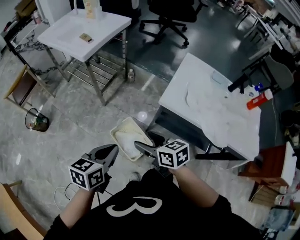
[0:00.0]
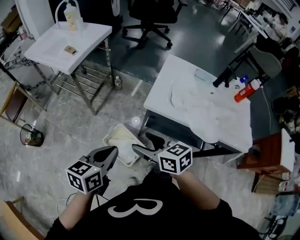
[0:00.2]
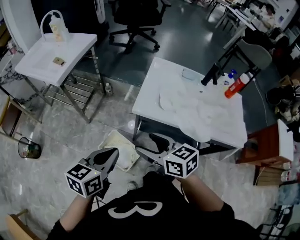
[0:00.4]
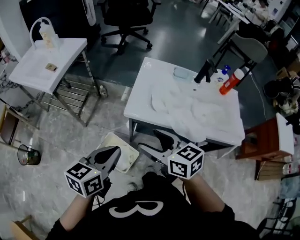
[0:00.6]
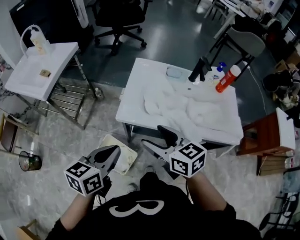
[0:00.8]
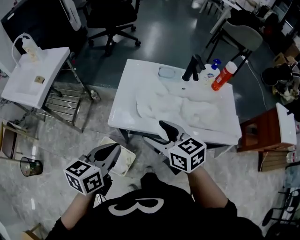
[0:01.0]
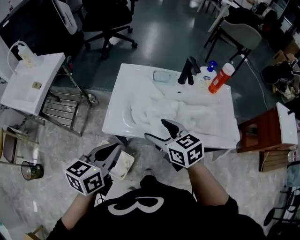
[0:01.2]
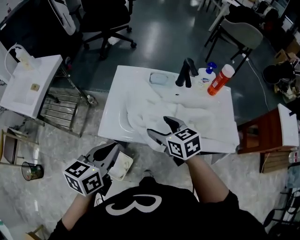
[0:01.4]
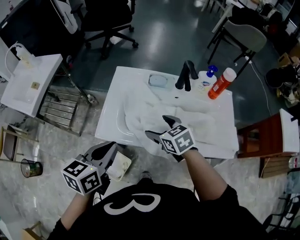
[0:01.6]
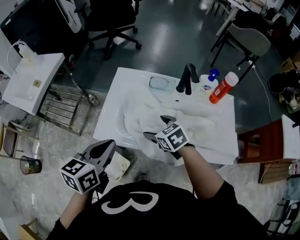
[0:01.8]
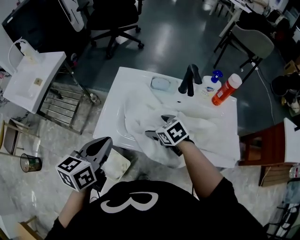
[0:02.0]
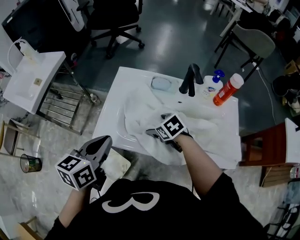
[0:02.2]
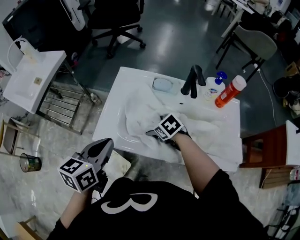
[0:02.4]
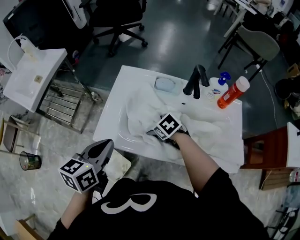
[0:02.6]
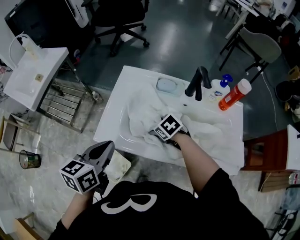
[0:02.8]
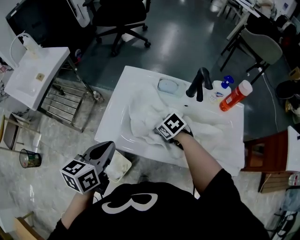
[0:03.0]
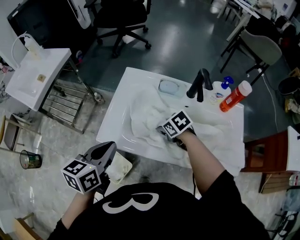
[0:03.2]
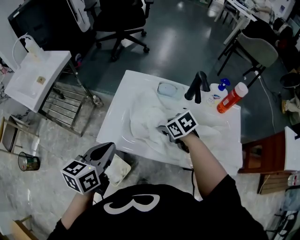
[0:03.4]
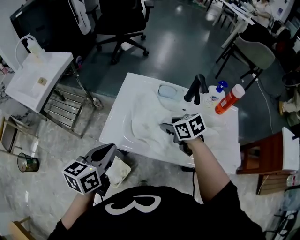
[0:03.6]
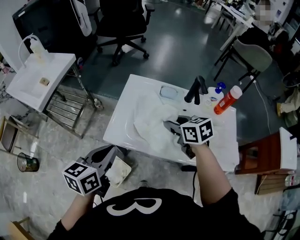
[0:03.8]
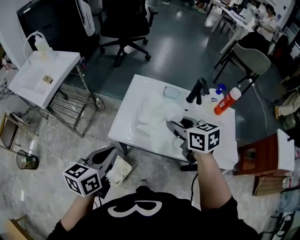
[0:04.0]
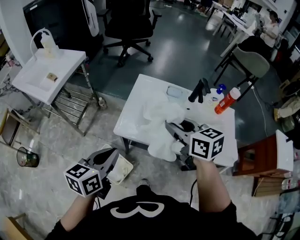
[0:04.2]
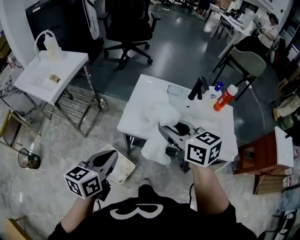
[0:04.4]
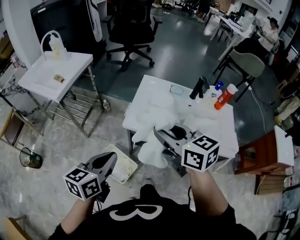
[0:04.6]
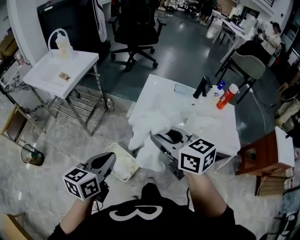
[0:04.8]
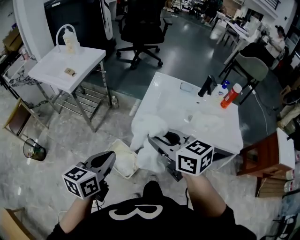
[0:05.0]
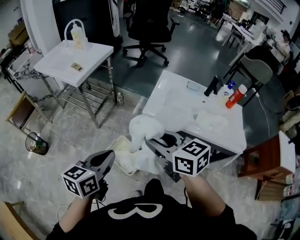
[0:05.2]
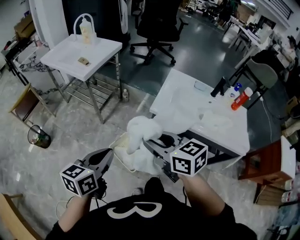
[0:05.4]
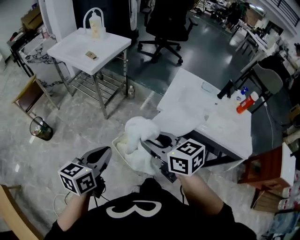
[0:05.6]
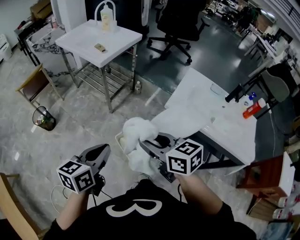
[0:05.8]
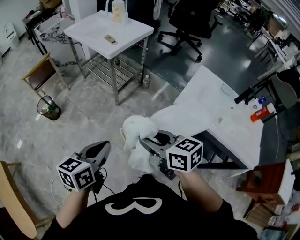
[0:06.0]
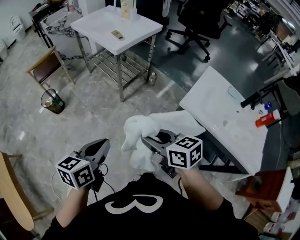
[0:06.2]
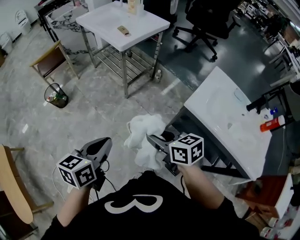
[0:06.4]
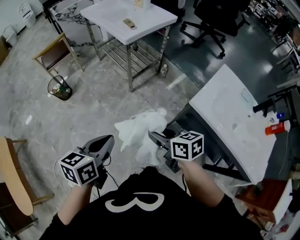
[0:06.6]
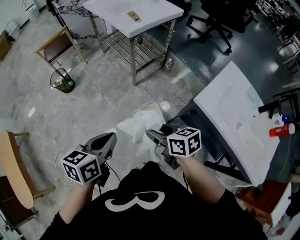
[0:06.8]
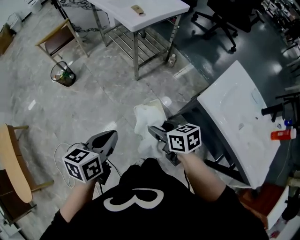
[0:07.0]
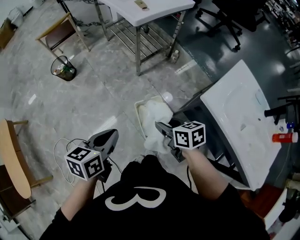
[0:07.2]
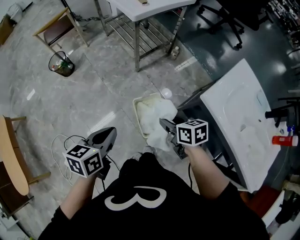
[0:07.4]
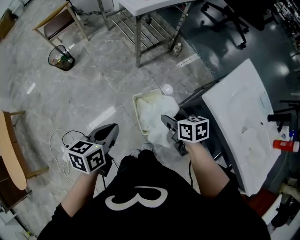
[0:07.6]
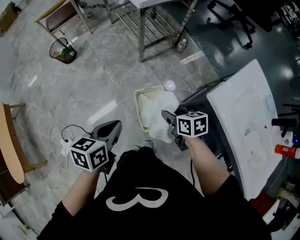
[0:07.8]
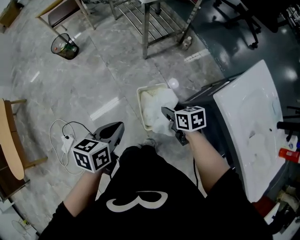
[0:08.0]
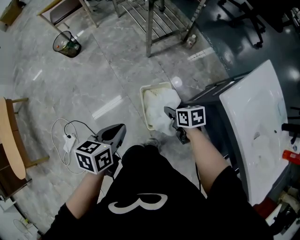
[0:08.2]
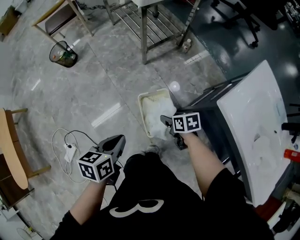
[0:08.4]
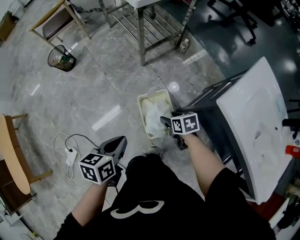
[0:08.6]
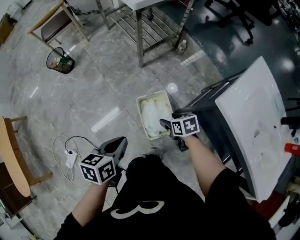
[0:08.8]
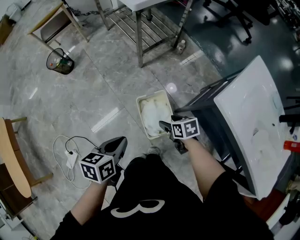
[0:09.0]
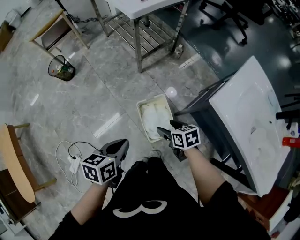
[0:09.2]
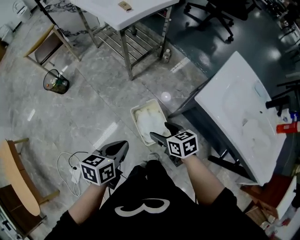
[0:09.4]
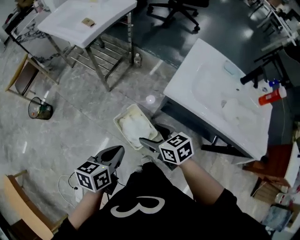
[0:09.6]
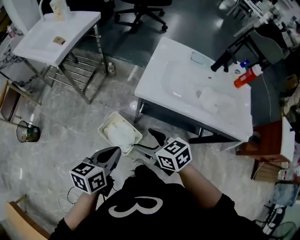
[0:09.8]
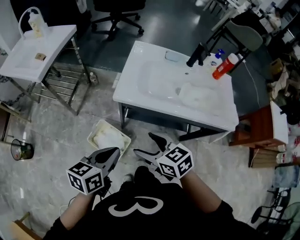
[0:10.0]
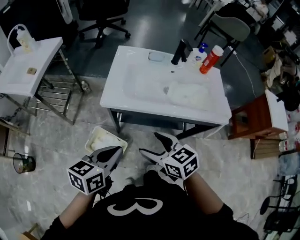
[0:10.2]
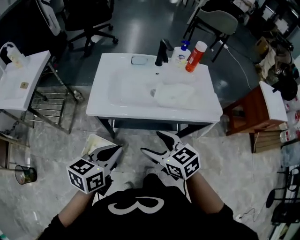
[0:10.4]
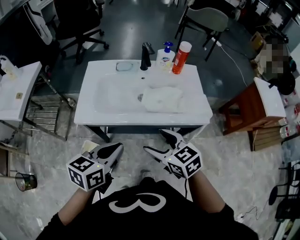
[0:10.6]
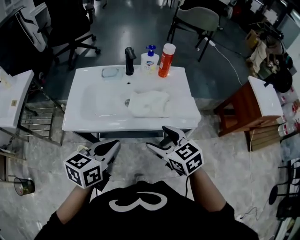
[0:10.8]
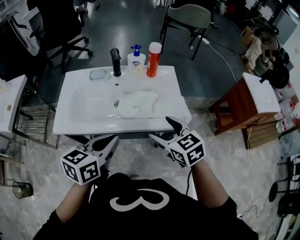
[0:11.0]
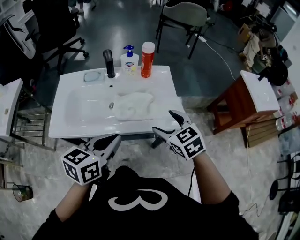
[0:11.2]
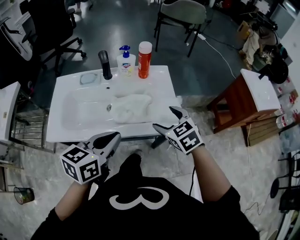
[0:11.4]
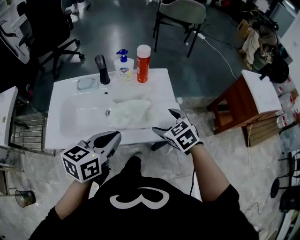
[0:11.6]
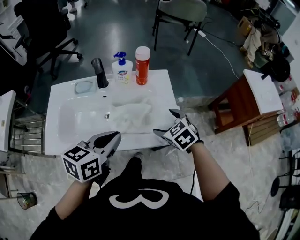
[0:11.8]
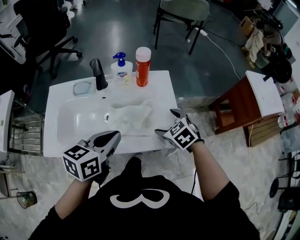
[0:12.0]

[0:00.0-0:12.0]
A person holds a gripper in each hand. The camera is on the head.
0:00.0 to 0:01.6: The grippers both shift to the right and forward by about 35 cm. The right gripper rotates roughly 30 degrees.
0:01.6 to 0:03.0: The left gripper moves approximately 5 cm. The right gripper moves downward and forward, approximately 15 cm, swivels approximately 30 degrees, and closes.
0:03.0 to 0:04.4: The left gripper shifts roughly 20 cm backward, to the left and upward, while the right gripper heads upward and backward, covering some 35 cm, and tilts its fingers about 40 degrees upward.
0:04.4 to 0:06.0: The right gripper changes place by roughly 35 cm, and swivels approximately 30 degrees. Meanwhile the left gripper shifts by some 30 cm, and rotates roughly 20 degrees.
0:06.0 to 0:07.6: The right gripper is displaced downward by roughly 25 cm, and swivels some 30 degrees. The left gripper heads downward, covering about 15 cm, and swivels about 20 degrees.
0:07.6 to 0:09.0: The right gripper heads downward, covering some 15 cm, while the left gripper is displaced downward by about 10 cm.
0:09.0 to 0:10.4: The left gripper ends up some 40 cm from where it was, and changes its angle by approximately 60 degrees. The right gripper travels upward by some 35 cm, and swivels approximately 50 degrees.
0:10.4 to 0:12.0: The right gripper travels to the right and forward by some 40 cm, and swivels some 30 degrees. The left gripper heads forward and to the right, covering roughly 35 cm.

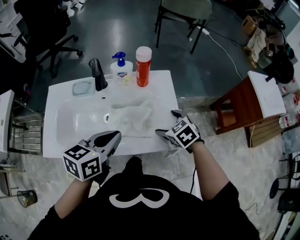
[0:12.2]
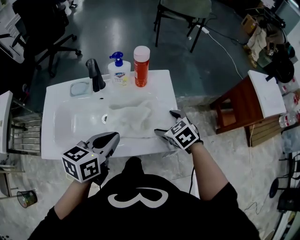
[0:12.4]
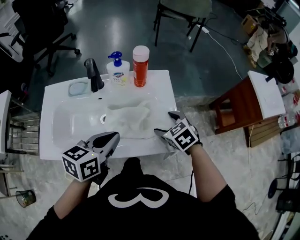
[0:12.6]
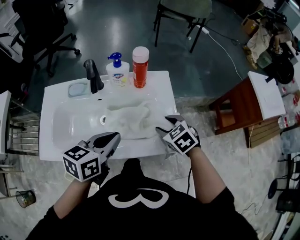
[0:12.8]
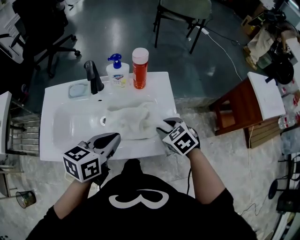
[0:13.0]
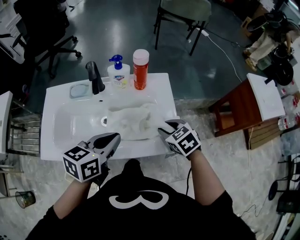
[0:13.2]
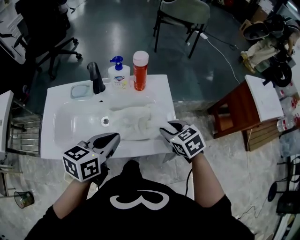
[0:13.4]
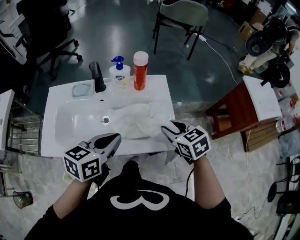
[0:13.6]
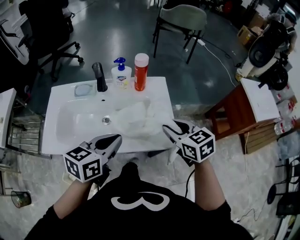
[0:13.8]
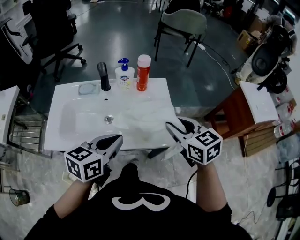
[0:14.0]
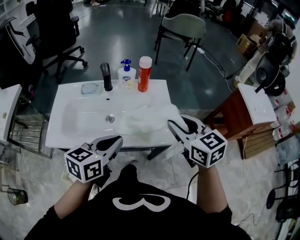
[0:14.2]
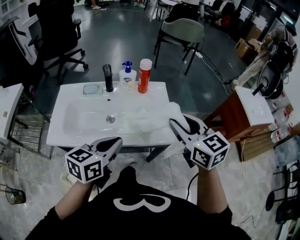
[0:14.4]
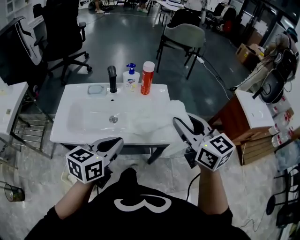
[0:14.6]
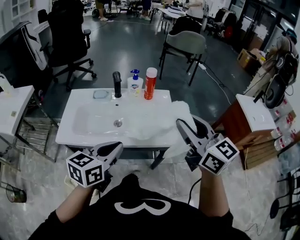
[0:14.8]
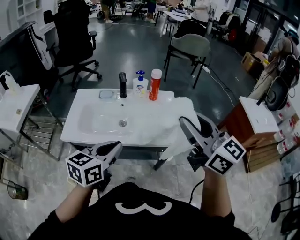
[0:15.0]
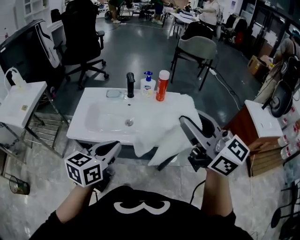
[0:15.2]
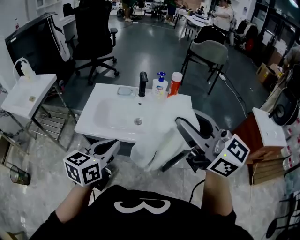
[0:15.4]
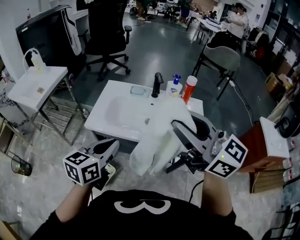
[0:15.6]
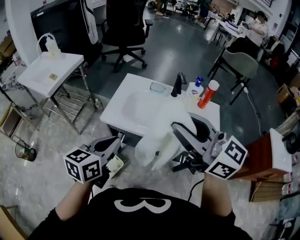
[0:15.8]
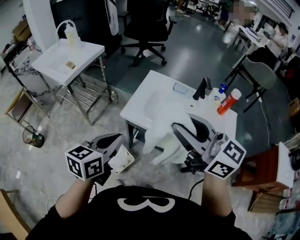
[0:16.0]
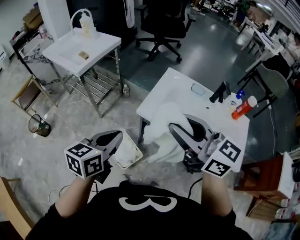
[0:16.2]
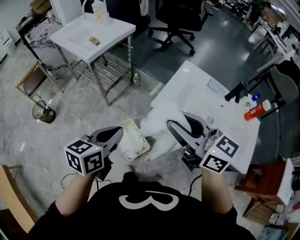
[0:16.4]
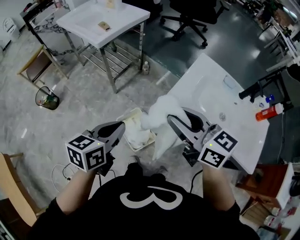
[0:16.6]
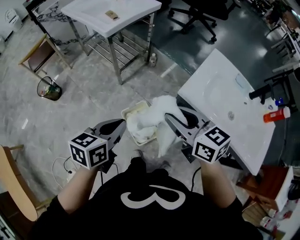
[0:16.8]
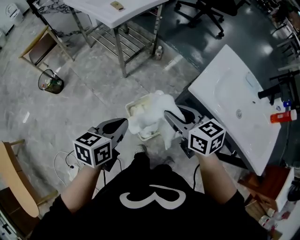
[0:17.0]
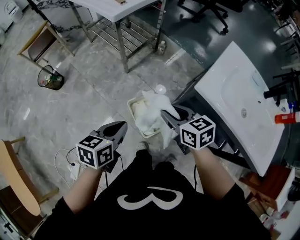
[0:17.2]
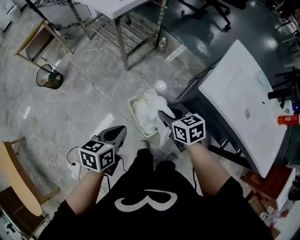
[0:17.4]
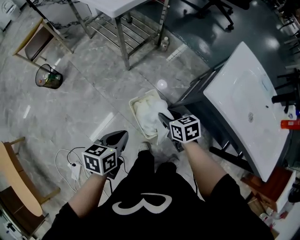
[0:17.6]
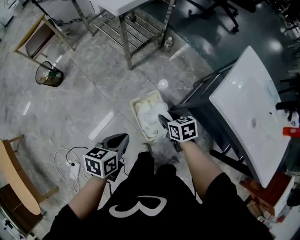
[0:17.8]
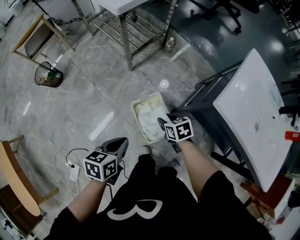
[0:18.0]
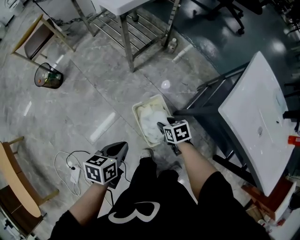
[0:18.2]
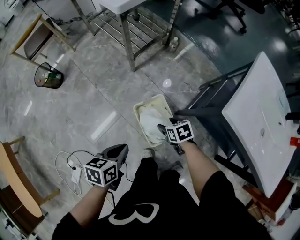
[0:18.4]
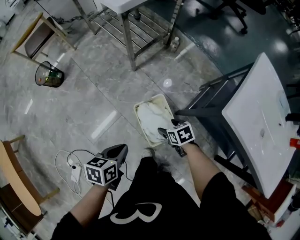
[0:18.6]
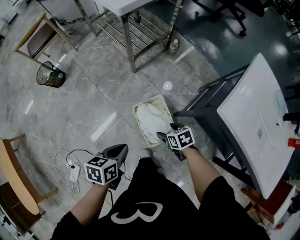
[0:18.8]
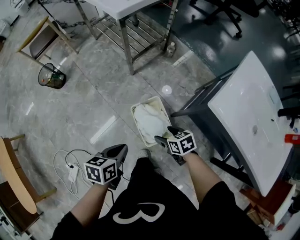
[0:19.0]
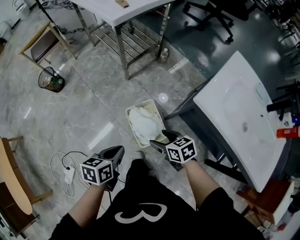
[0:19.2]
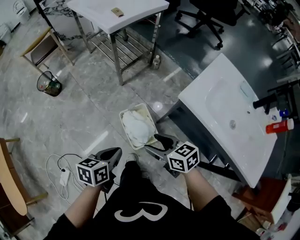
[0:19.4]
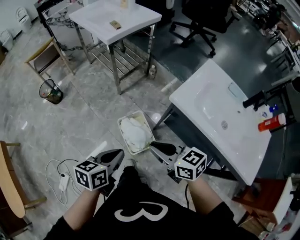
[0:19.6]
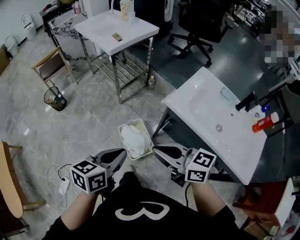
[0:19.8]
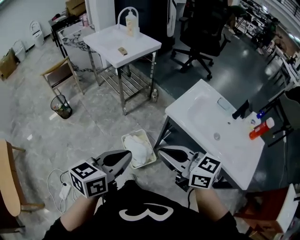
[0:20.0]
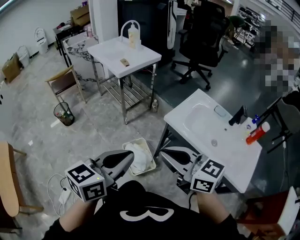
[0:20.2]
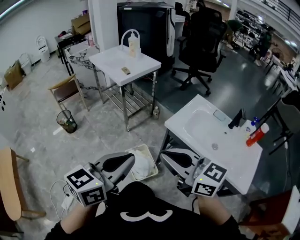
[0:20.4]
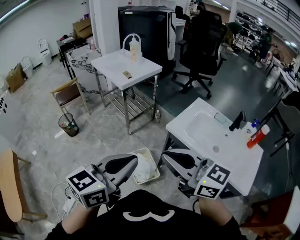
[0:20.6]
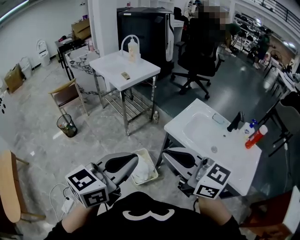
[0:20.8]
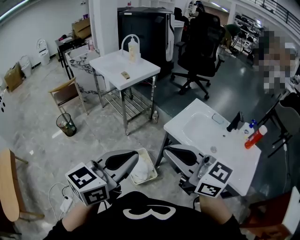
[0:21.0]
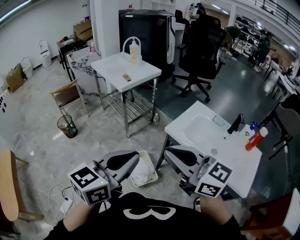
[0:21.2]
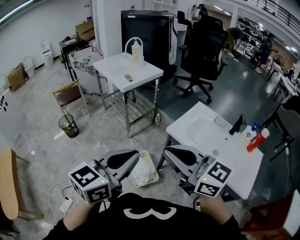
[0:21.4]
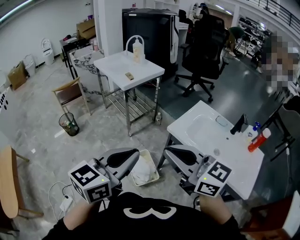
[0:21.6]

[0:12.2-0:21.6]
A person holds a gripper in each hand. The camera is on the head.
0:12.2 to 0:13.8: The right gripper shifts about 10 cm upward, swivels about 20 degrees, and closes its fingers.
0:13.8 to 0:15.4: The left gripper moves backward, to the left and upward, some 20 cm. Meanwhile the right gripper is displaced upward, backward and to the left by about 35 cm, and tilts its fingers approximately 40 degrees upward.
0:15.4 to 0:17.0: The pair of grippers is taken about 50 cm. The right gripper tips its fingers downward by roughly 40 degrees. The left gripper turns by about 40 degrees.
0:17.0 to 0:18.4: The left gripper travels downward by some 20 cm, while the right gripper moves downward, approximately 35 cm, and points its fingers approximately 30 degrees further downward.
0:18.4 to 0:20.0: The grippers both shift upward and backward by roughly 50 cm. The left gripper changes its angle by about 30 degrees. Meanwhile the right gripper tilts its fingers roughly 50 degrees upward, and closes up.
0:20.0 to 0:21.6: The two grippers go roughly 10 cm upward. The left gripper turns by approximately 20 degrees.

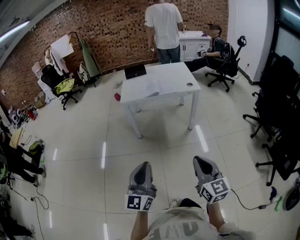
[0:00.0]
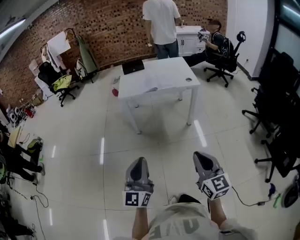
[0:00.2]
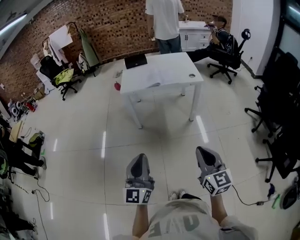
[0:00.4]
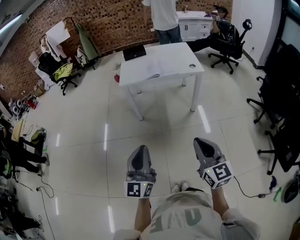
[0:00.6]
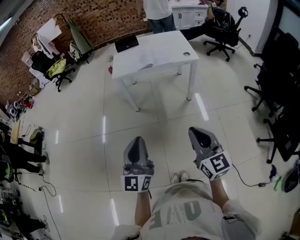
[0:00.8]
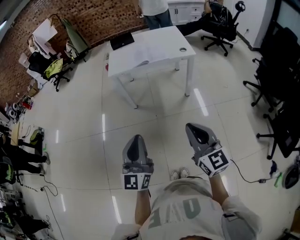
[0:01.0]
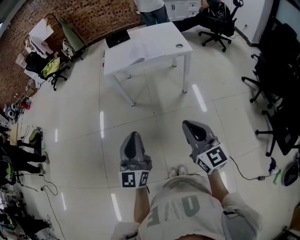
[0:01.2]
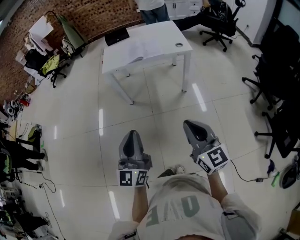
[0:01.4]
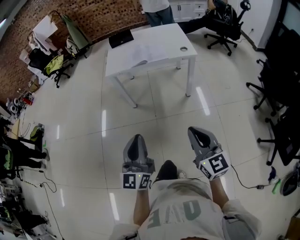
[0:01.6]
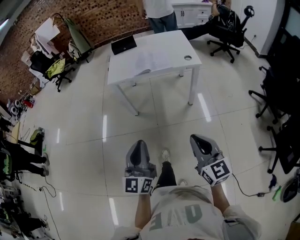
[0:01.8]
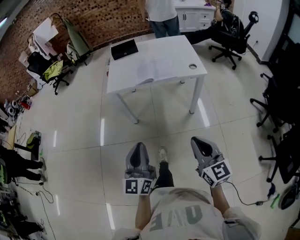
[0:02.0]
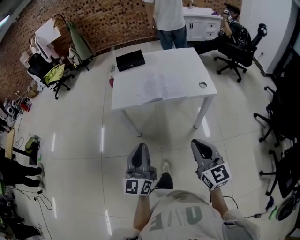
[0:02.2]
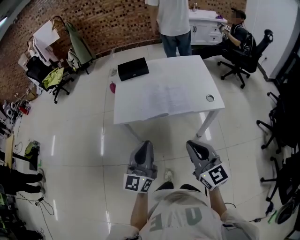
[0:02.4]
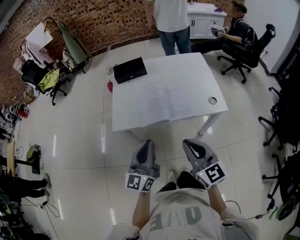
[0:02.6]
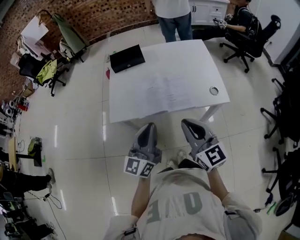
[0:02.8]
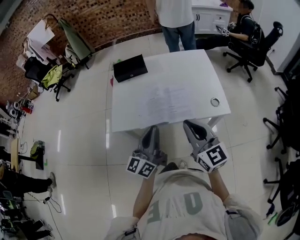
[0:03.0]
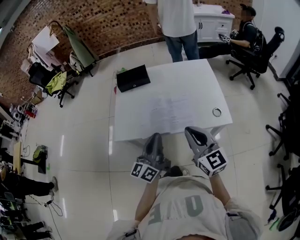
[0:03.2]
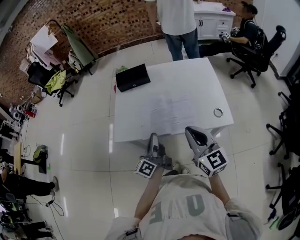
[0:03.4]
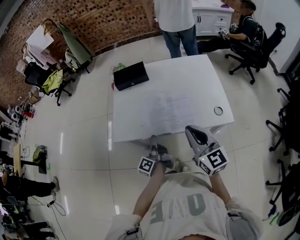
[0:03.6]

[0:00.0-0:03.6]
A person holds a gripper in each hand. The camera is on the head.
0:00.0 to 0:01.8: Both grippers travel together forward and to the right, some 15 cm.
0:01.8 to 0:03.6: The pair of grippers is taken forward, about 50 cm. The left gripper rolls counterclockwise, seen from behind, by about 70 degrees.
